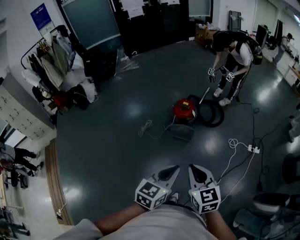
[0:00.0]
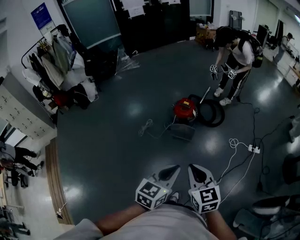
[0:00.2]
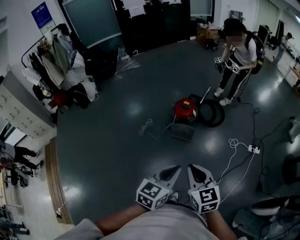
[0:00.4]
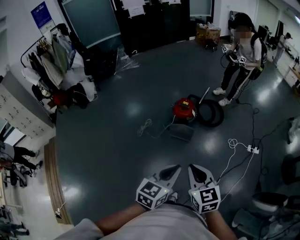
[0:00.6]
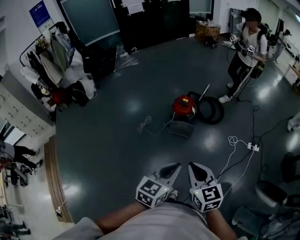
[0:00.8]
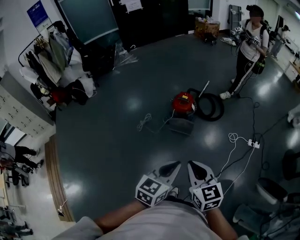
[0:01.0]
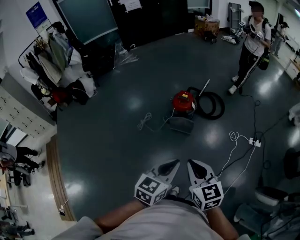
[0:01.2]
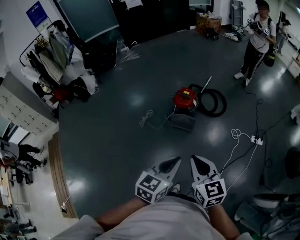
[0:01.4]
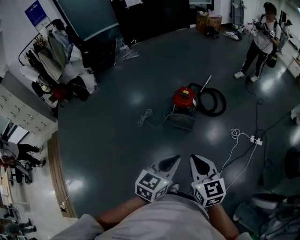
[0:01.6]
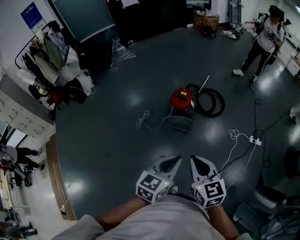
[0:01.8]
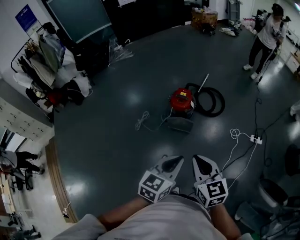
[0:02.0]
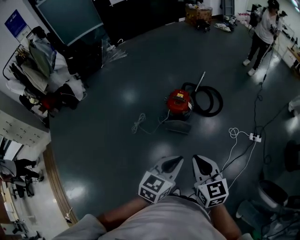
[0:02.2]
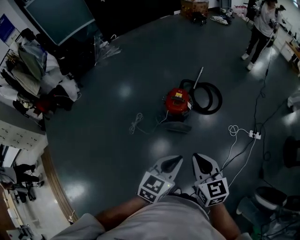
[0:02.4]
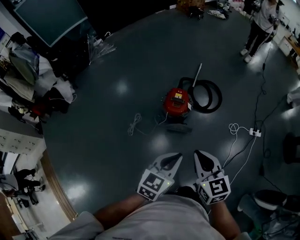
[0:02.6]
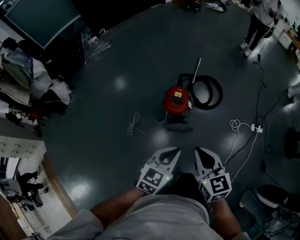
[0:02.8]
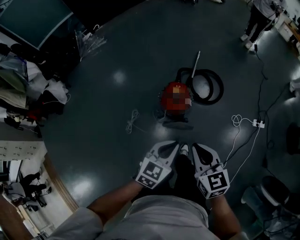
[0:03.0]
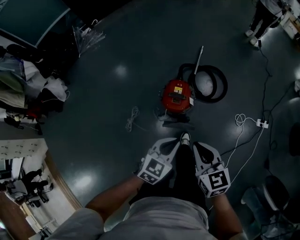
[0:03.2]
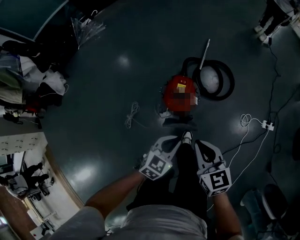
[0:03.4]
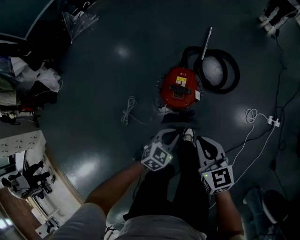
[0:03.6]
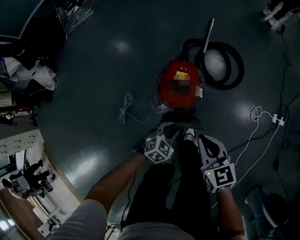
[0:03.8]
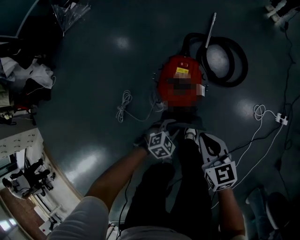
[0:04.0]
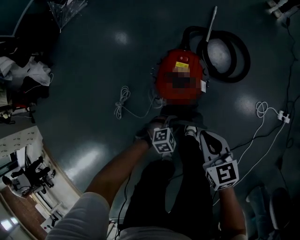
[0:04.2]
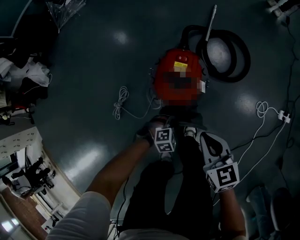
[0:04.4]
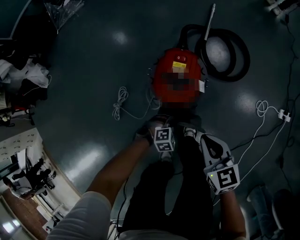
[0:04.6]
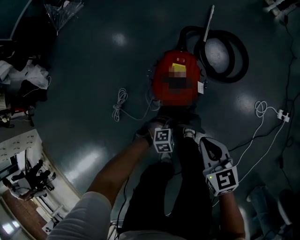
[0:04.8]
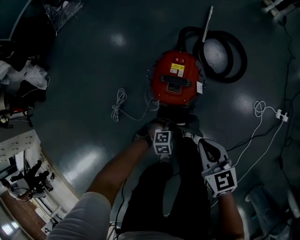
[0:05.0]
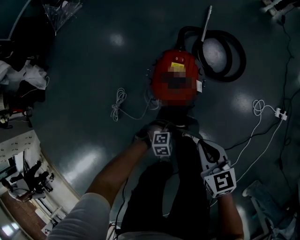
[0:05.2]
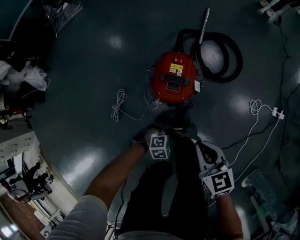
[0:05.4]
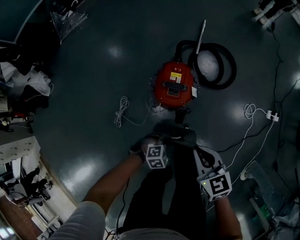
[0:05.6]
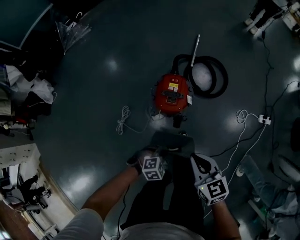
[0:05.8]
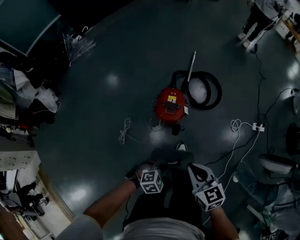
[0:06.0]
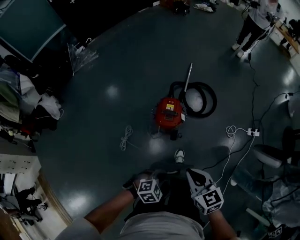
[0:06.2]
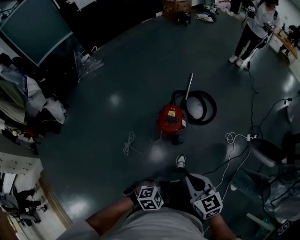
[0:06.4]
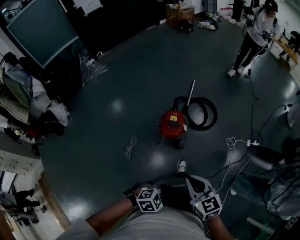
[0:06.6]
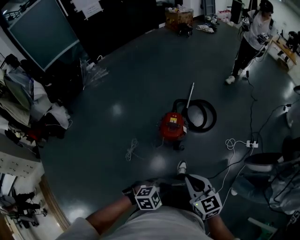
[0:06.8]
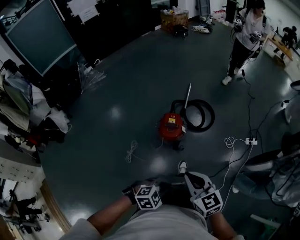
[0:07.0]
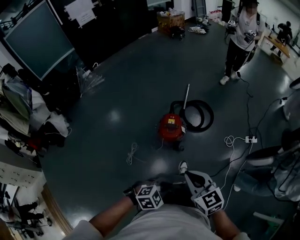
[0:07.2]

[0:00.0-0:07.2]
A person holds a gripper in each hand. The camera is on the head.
0:00.0 to 0:01.4: The grippers make only small movements.
0:01.4 to 0:02.8: Both grippers travel together forward, some 35 cm.
0:02.8 to 0:04.4: The left gripper travels downward by some 60 cm, points its fingers some 40 degrees further downward, and opens its fingers. Meanwhile the right gripper heads downward and forward, covering some 50 cm.
0:04.4 to 0:05.8: Both grippers move upward and backward, about 25 cm. The left gripper closes up.
0:05.8 to 0:07.2: Both grippers travel together upward and backward, approximately 30 cm.

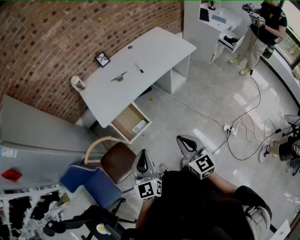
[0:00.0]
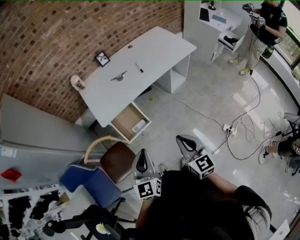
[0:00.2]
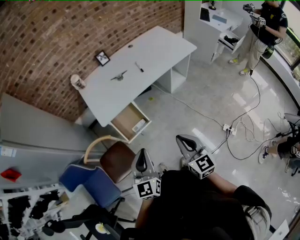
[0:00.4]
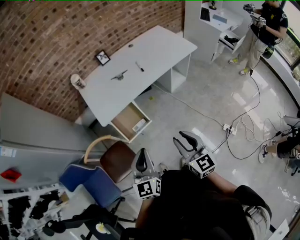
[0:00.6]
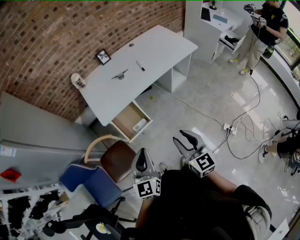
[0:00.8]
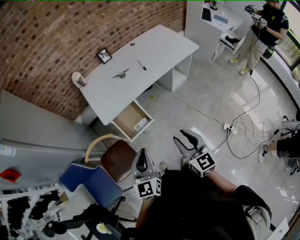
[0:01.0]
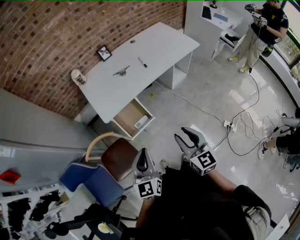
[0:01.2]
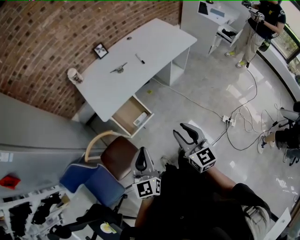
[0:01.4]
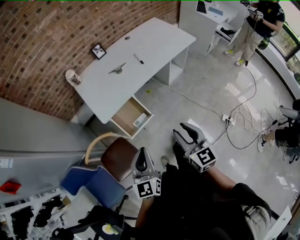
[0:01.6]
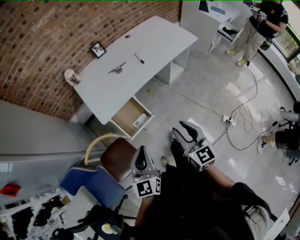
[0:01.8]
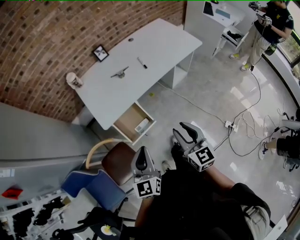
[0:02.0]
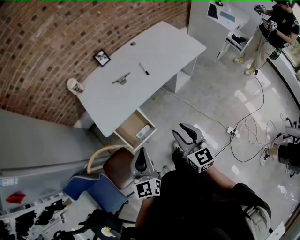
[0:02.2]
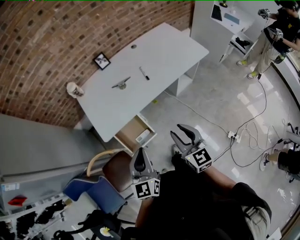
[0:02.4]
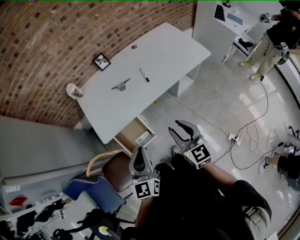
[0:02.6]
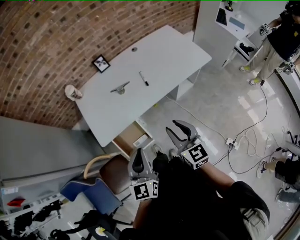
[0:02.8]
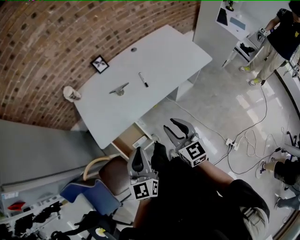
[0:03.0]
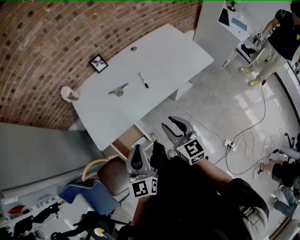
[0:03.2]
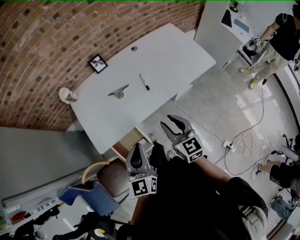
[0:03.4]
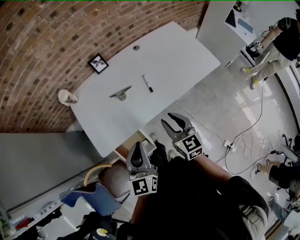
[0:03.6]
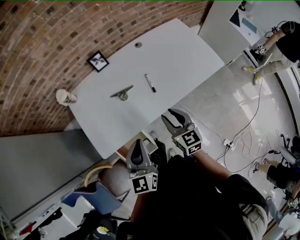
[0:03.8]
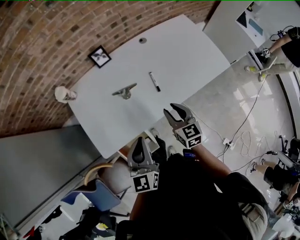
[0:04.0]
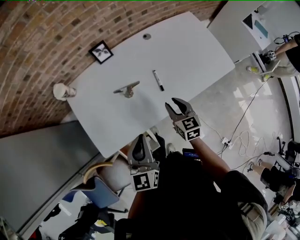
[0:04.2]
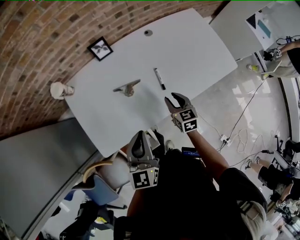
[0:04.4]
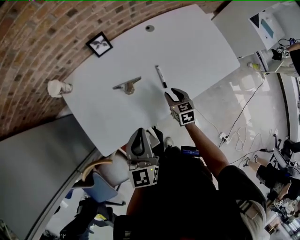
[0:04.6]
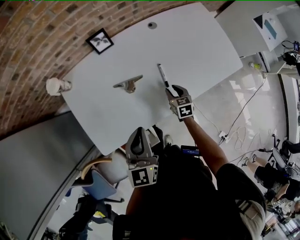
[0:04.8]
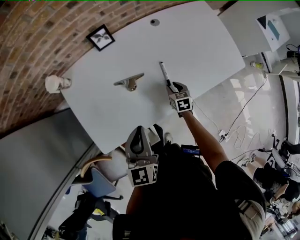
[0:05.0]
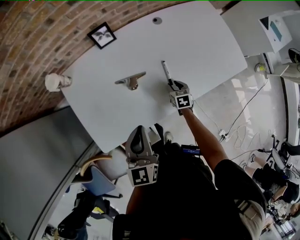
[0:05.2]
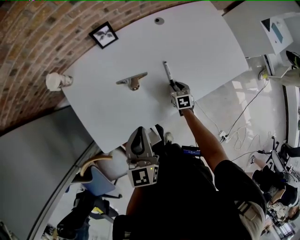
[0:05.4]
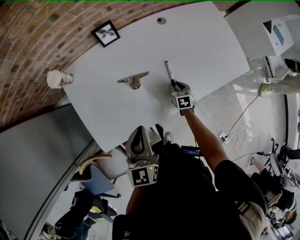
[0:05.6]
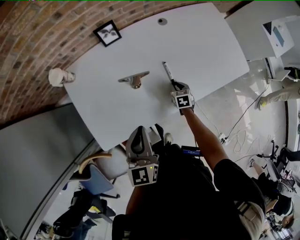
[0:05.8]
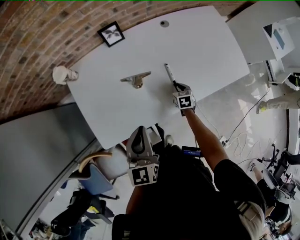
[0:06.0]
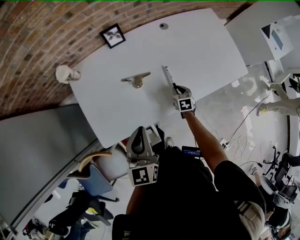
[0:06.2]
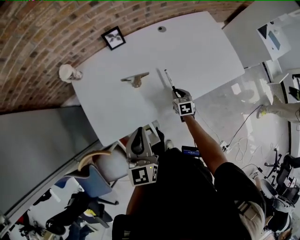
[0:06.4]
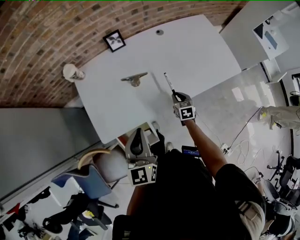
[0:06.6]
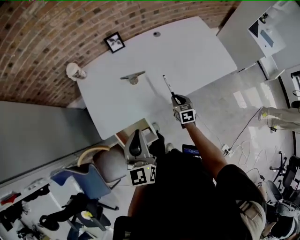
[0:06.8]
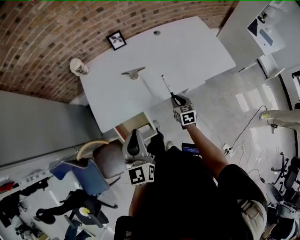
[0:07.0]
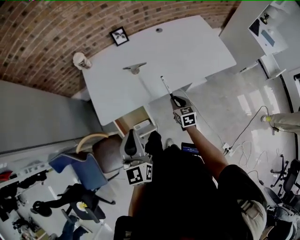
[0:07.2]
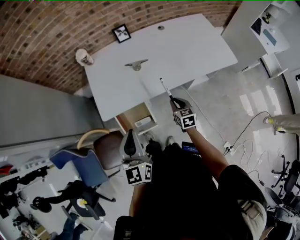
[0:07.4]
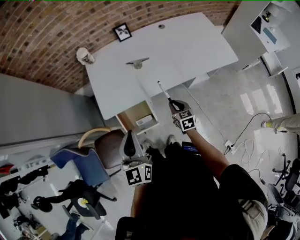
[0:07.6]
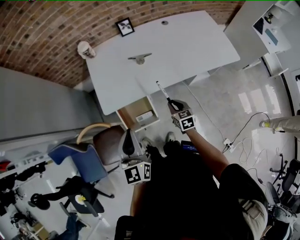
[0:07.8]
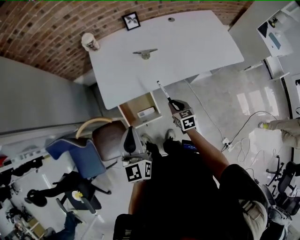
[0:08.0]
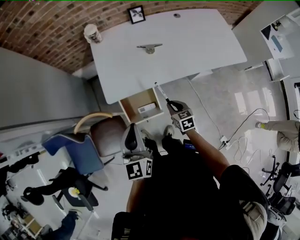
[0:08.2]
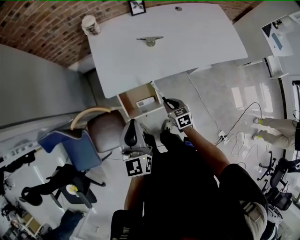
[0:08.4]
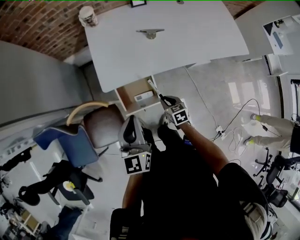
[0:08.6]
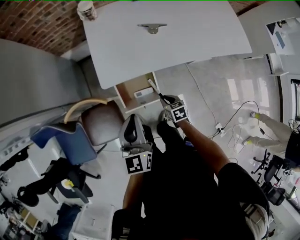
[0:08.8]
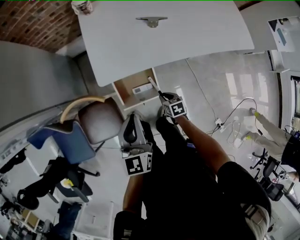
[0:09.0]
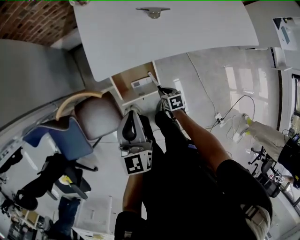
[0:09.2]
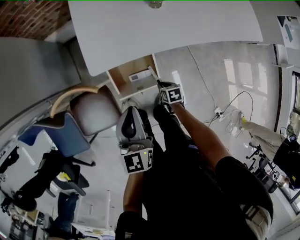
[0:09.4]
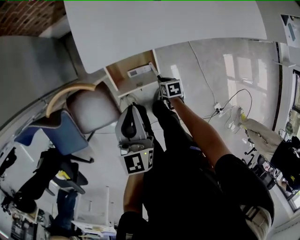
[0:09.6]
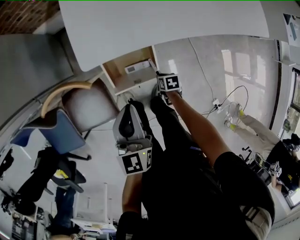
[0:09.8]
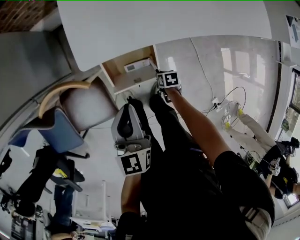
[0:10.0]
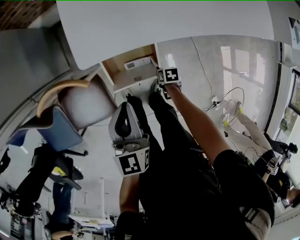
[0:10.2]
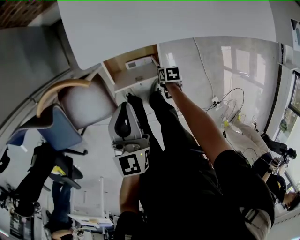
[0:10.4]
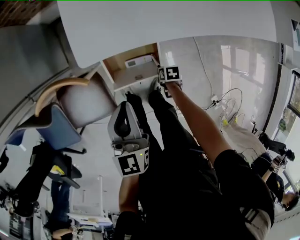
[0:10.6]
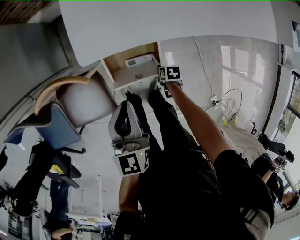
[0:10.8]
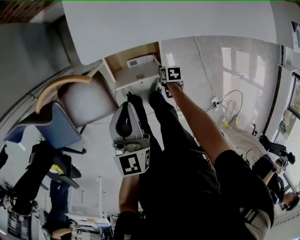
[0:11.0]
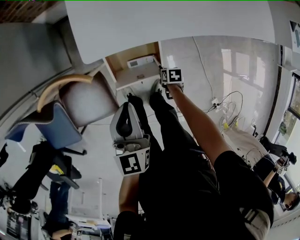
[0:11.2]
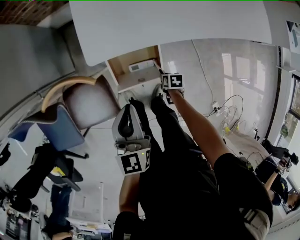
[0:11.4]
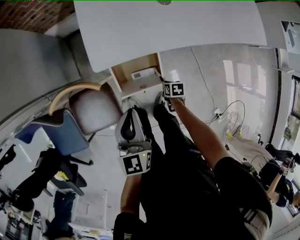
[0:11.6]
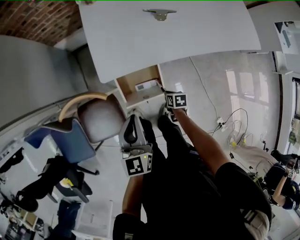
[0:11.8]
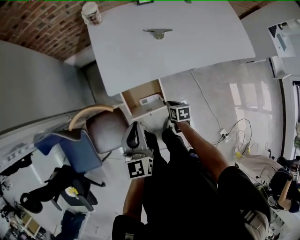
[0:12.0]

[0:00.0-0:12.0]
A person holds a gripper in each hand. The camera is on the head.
0:00.0 to 0:01.6: Both grippers move to the left, some 5 cm. The right gripper opens.
0:01.6 to 0:03.0: The right gripper is displaced forward by some 25 cm; the left gripper heads forward and to the right, covering about 25 cm.
0:03.0 to 0:04.4: The right gripper travels forward and downward by about 35 cm, and changes its angle by roughly 20 degrees, while the left gripper moves forward, roughly 25 cm.
0:04.4 to 0:06.0: The right gripper heads downward, covering roughly 15 cm, and turns by some 20 degrees.
0:06.0 to 0:07.6: The right gripper travels backward and upward by approximately 30 cm, and turns by some 20 degrees. Meanwhile the left gripper heads backward, covering some 25 cm.
0:07.6 to 0:09.0: Both grippers travel together downward and to the left, about 20 cm. The right gripper rotates roughly 30 degrees.
0:09.0 to 0:10.4: The right gripper goes some 20 cm downward, and swivels some 30 degrees. The left gripper moves downward, some 10 cm.
0:10.4 to 0:12.0: The right gripper moves upward, roughly 20 cm, and turns by about 20 degrees. Meanwhile the left gripper goes roughly 10 cm upward.

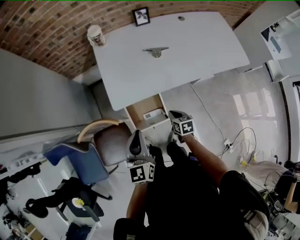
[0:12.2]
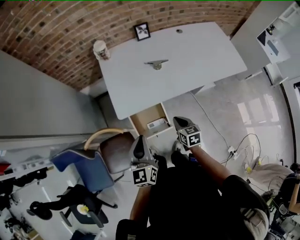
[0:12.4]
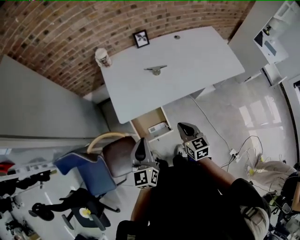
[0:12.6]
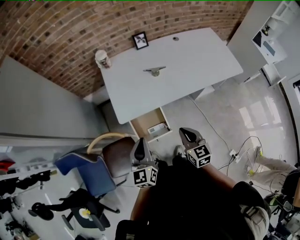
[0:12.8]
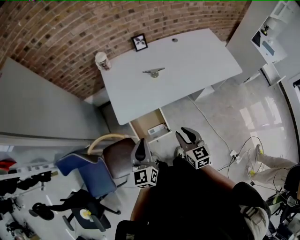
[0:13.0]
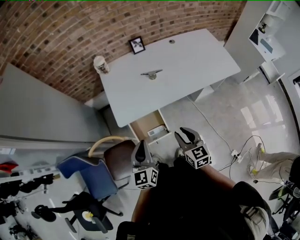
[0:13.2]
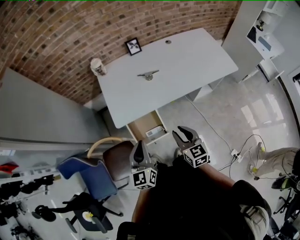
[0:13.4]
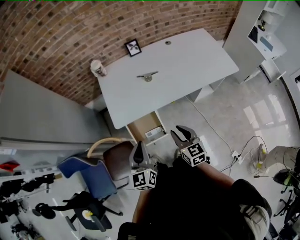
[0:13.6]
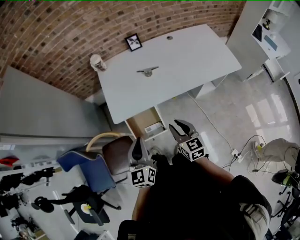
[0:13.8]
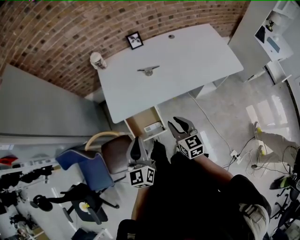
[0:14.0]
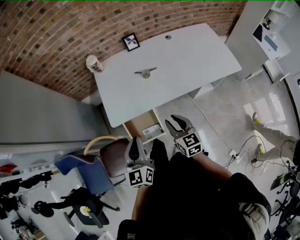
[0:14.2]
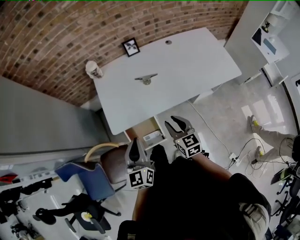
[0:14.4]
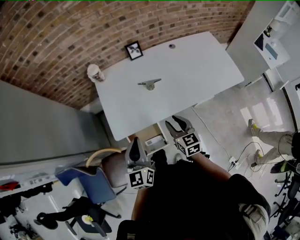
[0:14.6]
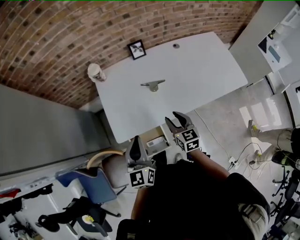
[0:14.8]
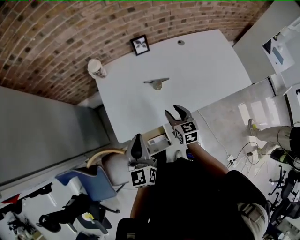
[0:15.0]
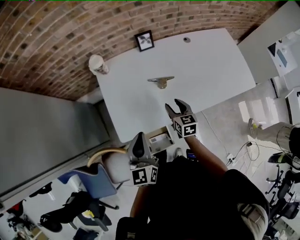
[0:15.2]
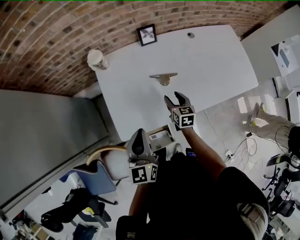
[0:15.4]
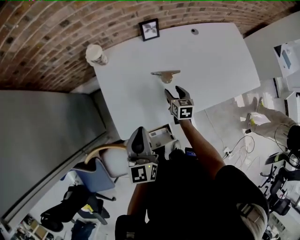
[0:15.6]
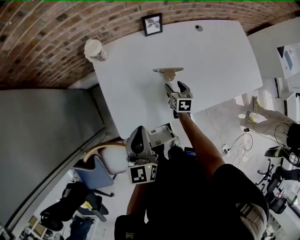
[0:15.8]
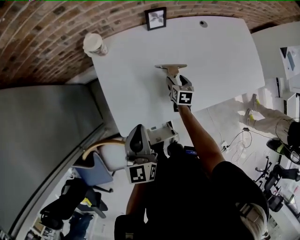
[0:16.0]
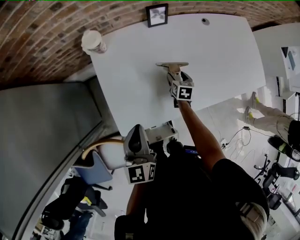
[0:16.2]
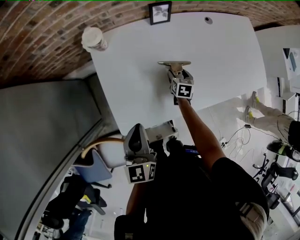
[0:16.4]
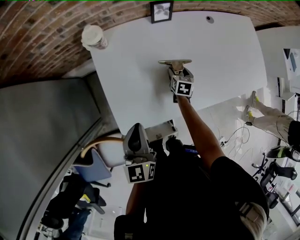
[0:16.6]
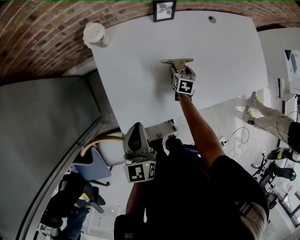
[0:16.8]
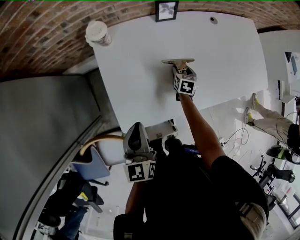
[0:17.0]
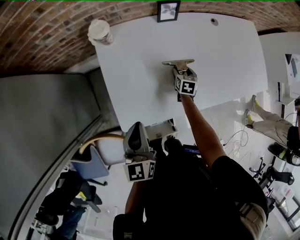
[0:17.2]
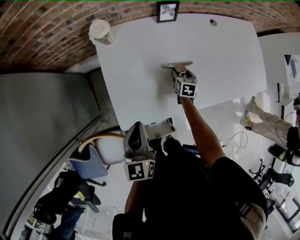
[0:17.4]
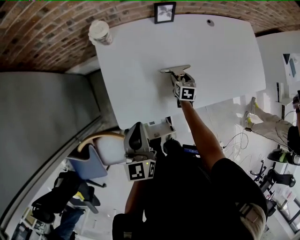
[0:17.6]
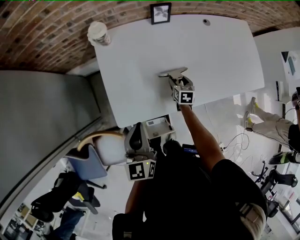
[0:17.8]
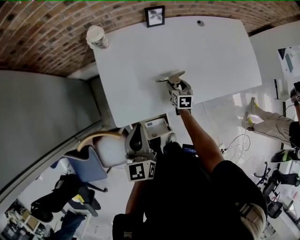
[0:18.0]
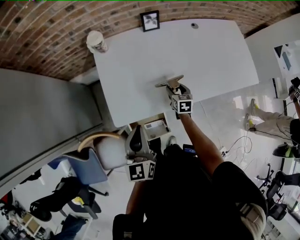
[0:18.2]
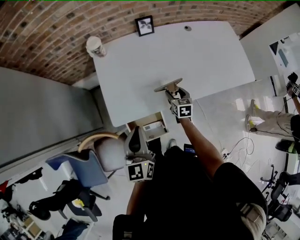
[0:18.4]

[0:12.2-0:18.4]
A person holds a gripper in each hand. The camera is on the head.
0:12.2 to 0:13.8: The right gripper goes approximately 20 cm upward, changes its angle by roughly 30 degrees, and opens up. Meanwhile the left gripper travels to the right and upward by some 10 cm.
0:13.8 to 0:15.4: Both grippers travel together forward, approximately 30 cm.
0:15.4 to 0:16.8: The left gripper goes approximately 10 cm downward and to the left. The right gripper shifts approximately 20 cm downward and forward, and changes its angle by some 20 degrees.
0:16.8 to 0:18.4: The right gripper moves backward and upward, some 20 cm; the left gripper goes approximately 15 cm backward, to the right and upward.
